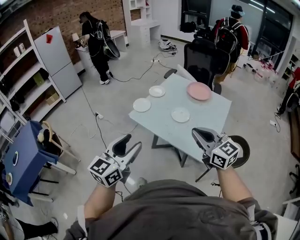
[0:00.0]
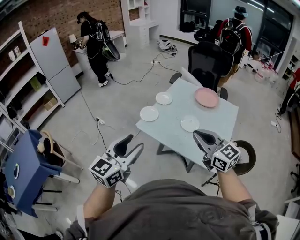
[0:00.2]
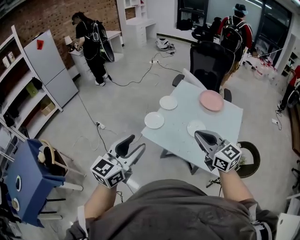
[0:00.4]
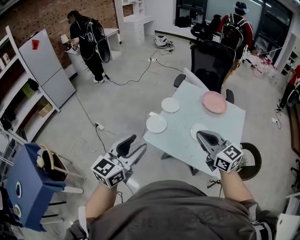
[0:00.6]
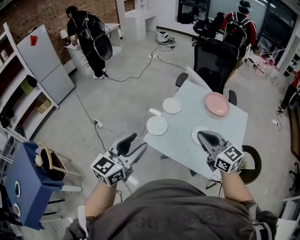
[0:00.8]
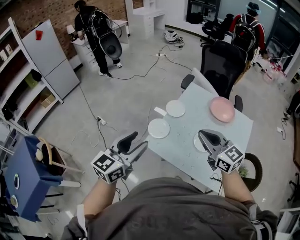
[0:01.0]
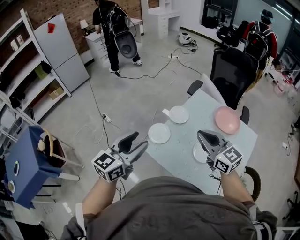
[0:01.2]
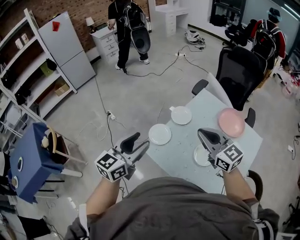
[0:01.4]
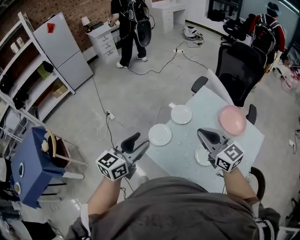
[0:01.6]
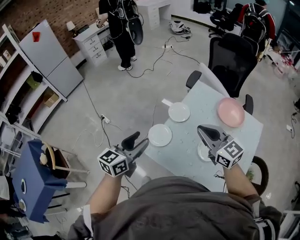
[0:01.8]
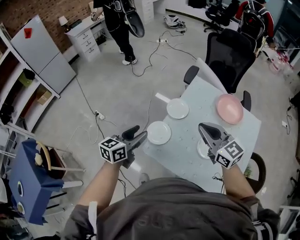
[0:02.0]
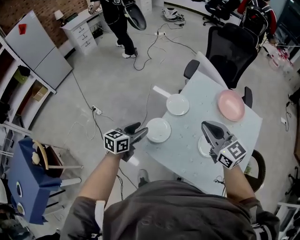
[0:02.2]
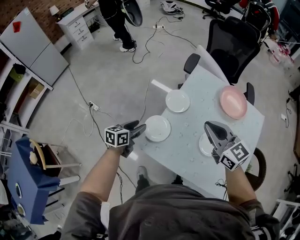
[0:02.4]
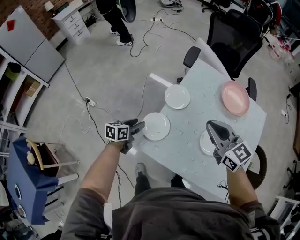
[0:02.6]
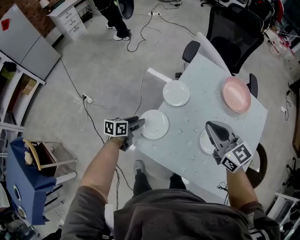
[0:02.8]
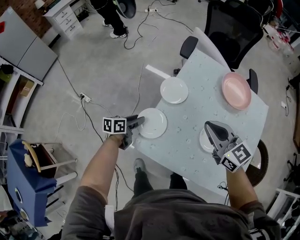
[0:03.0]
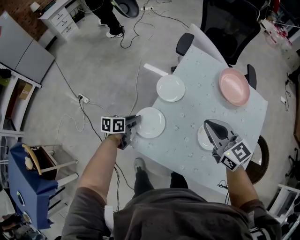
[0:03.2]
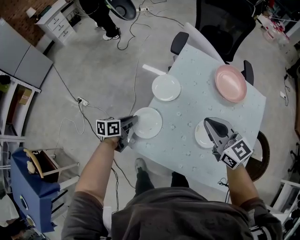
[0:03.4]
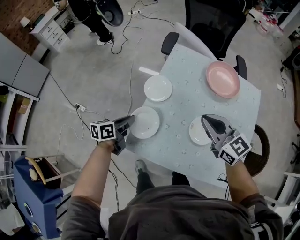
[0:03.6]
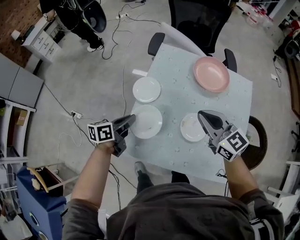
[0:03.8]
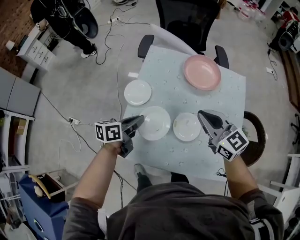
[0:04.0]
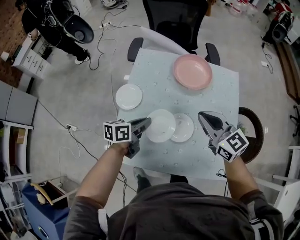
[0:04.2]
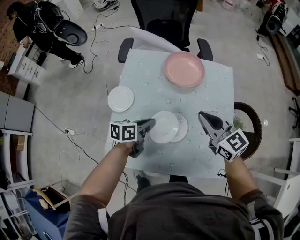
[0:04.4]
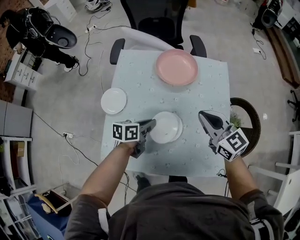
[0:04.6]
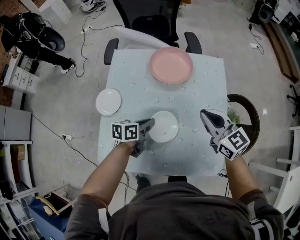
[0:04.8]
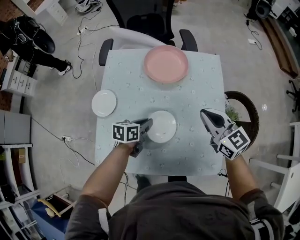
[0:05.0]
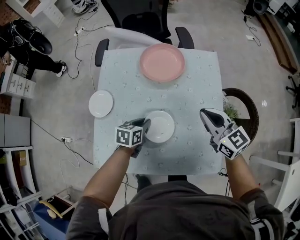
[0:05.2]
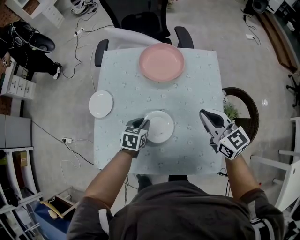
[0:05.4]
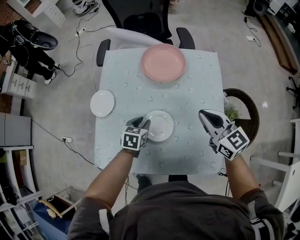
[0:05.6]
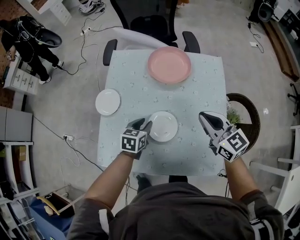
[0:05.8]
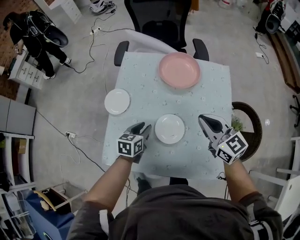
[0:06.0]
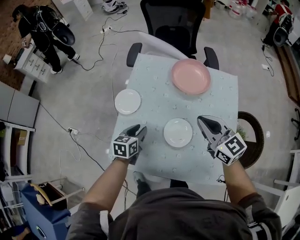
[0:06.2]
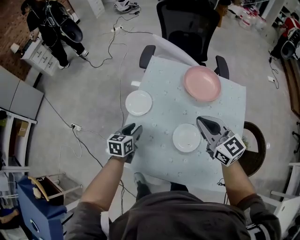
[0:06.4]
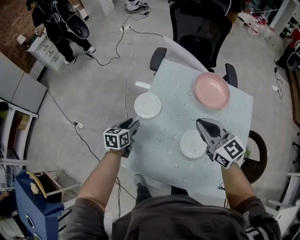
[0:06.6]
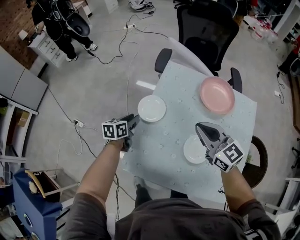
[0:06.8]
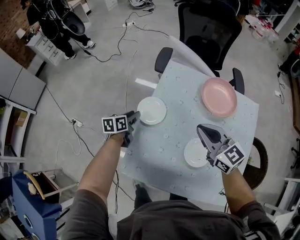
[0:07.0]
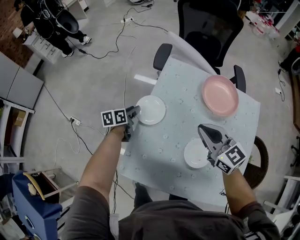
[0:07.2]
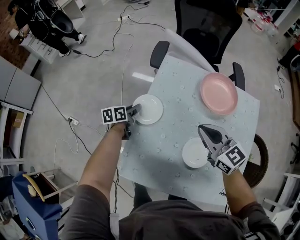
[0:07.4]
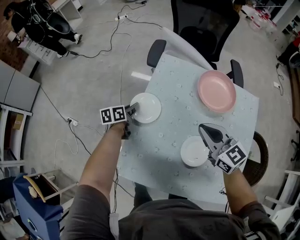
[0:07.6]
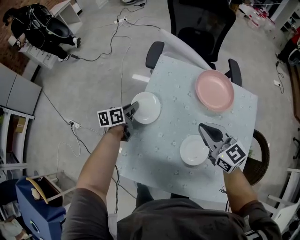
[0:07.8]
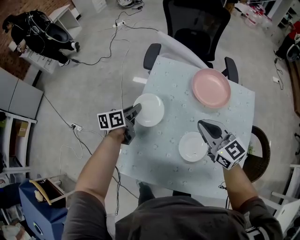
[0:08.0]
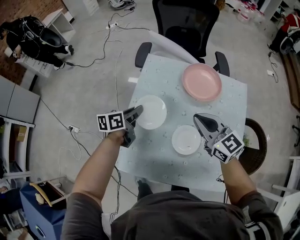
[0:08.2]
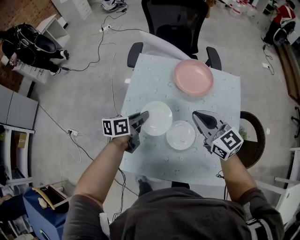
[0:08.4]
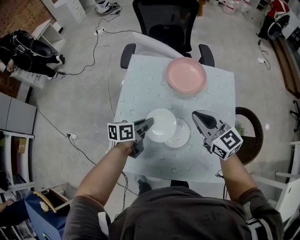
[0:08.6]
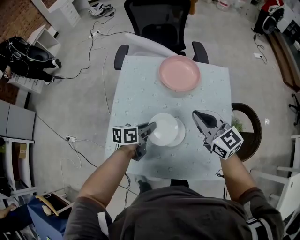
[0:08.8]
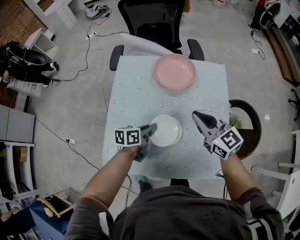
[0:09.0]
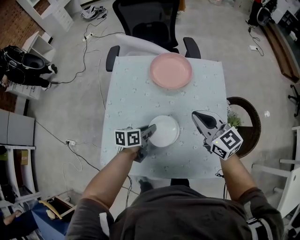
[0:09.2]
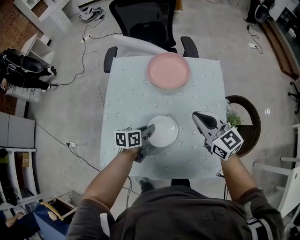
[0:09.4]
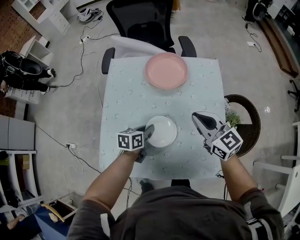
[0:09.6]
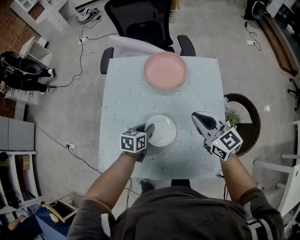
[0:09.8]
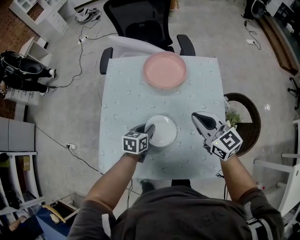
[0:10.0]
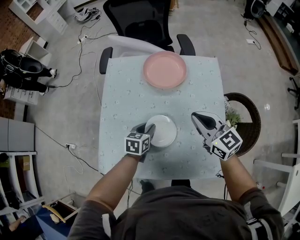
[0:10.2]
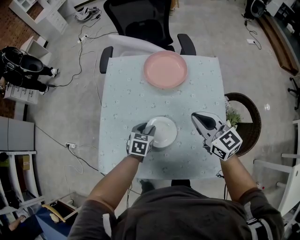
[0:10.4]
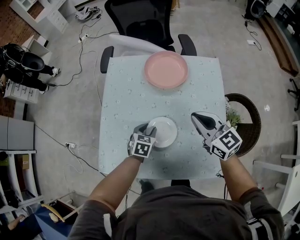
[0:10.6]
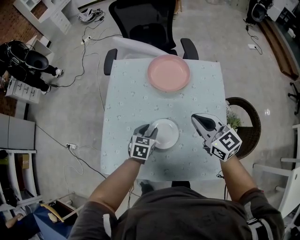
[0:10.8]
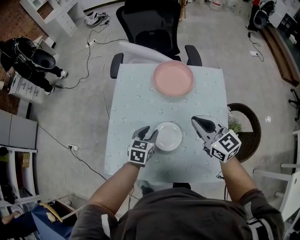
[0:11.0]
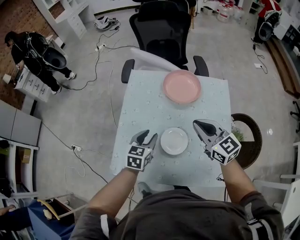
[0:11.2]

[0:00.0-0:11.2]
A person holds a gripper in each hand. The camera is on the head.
0:00.0 to 0:01.6: Both grippers move forward, roughly 40 cm.
0:01.6 to 0:03.2: The right gripper is displaced downward by about 15 cm; the left gripper heads downward and forward, covering roughly 40 cm, changes its angle by roughly 50 degrees, and closes.
0:03.2 to 0:04.8: Both grippers travel together to the right, approximately 30 cm. The right gripper turns by some 20 degrees. The left gripper rotates approximately 30 degrees.
0:04.8 to 0:06.4: The grippers both shift to the left by roughly 20 cm. The left gripper turns by roughly 30 degrees, and opens.
0:06.4 to 0:08.0: The right gripper heads forward, covering some 5 cm, and reaches roughly 10 cm to the left, then returns. Meanwhile the left gripper shifts about 15 cm forward, turns by approximately 20 degrees, and closes its fingers.
0:08.0 to 0:09.6: The two grippers go approximately 20 cm to the right. The left gripper changes its angle by roughly 30 degrees.
0:09.6 to 0:11.2: The right gripper travels to the left by some 5 cm, while the left gripper moves upward and to the left, about 10 cm, swivels some 30 degrees, and opens its fingers.

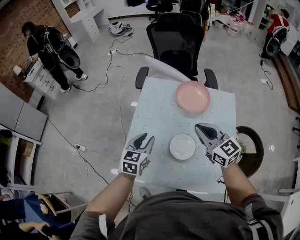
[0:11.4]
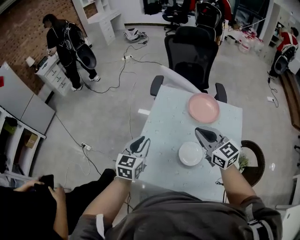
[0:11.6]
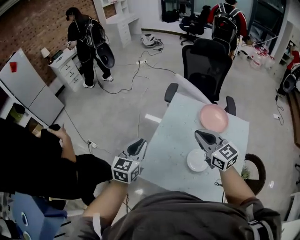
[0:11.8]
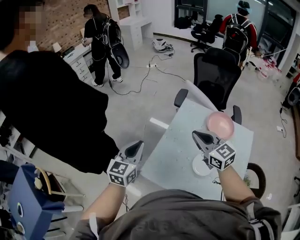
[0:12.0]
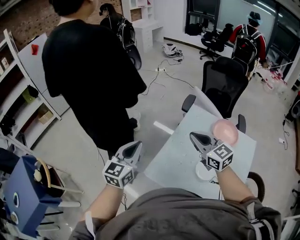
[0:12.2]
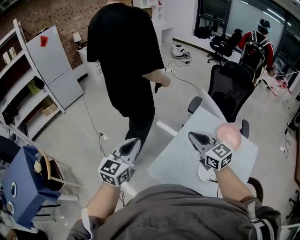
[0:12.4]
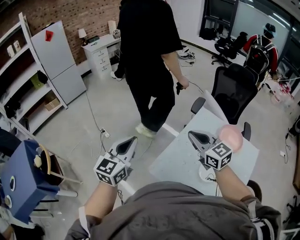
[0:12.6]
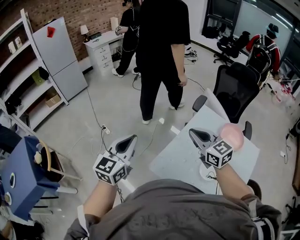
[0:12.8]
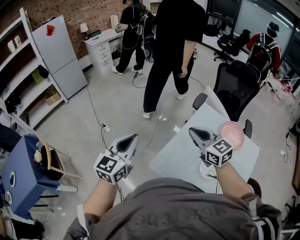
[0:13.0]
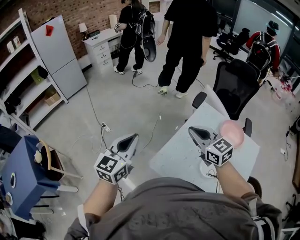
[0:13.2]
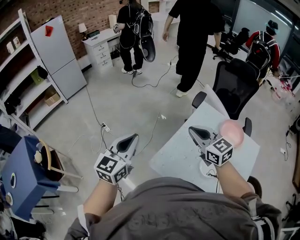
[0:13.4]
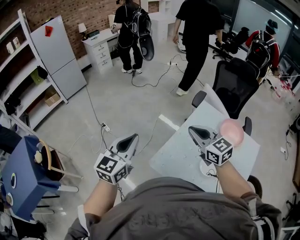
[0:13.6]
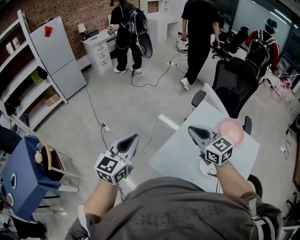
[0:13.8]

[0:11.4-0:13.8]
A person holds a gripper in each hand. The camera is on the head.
0:11.4 to 0:12.6: The right gripper ends up some 30 cm from where it was, and rotates roughly 30 degrees, while the left gripper moves approximately 40 cm, swivels roughly 30 degrees, and closes.
0:12.6 to 0:13.8: The grippers move only a little.

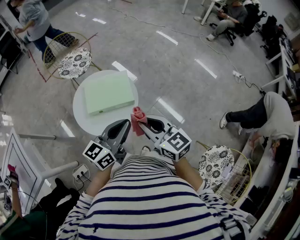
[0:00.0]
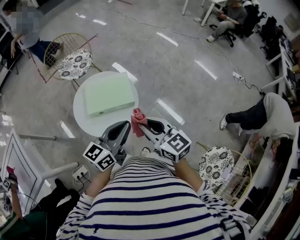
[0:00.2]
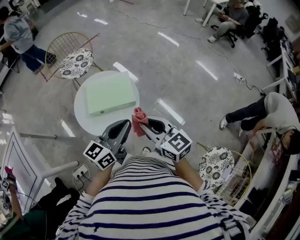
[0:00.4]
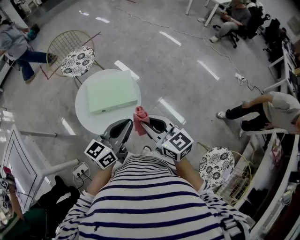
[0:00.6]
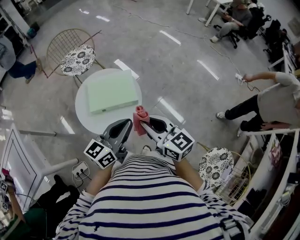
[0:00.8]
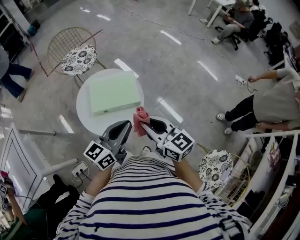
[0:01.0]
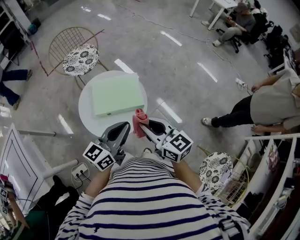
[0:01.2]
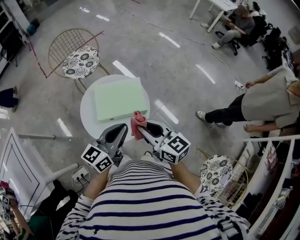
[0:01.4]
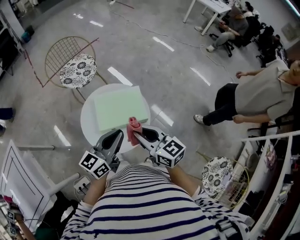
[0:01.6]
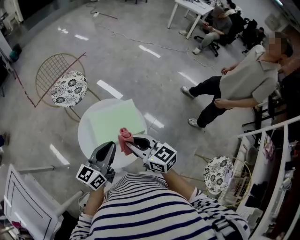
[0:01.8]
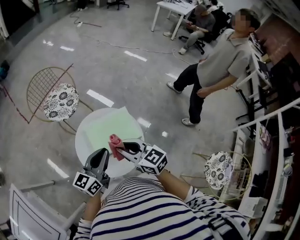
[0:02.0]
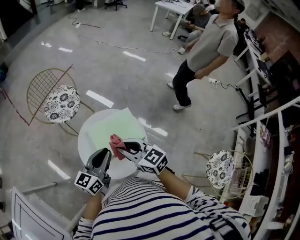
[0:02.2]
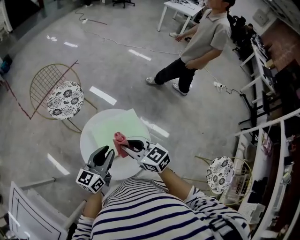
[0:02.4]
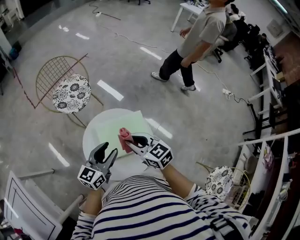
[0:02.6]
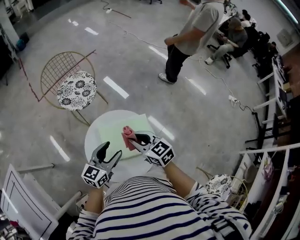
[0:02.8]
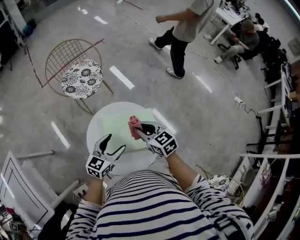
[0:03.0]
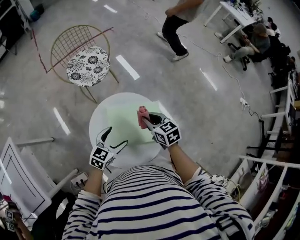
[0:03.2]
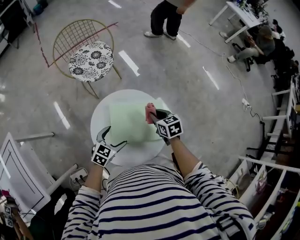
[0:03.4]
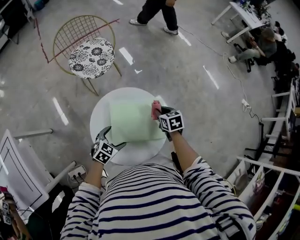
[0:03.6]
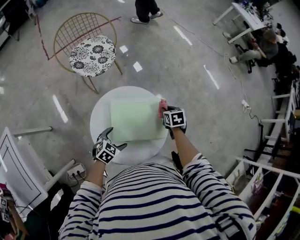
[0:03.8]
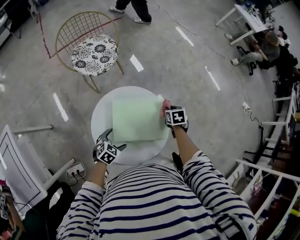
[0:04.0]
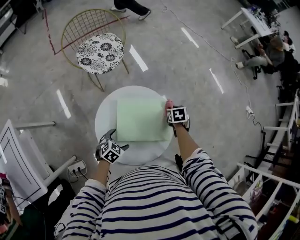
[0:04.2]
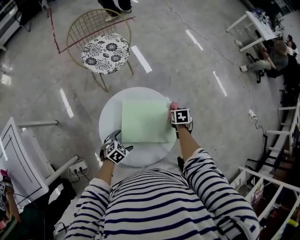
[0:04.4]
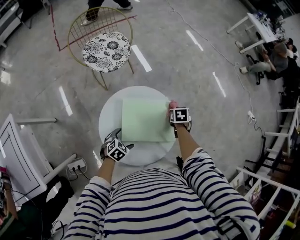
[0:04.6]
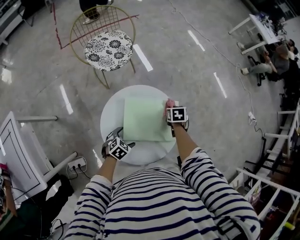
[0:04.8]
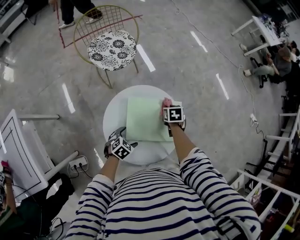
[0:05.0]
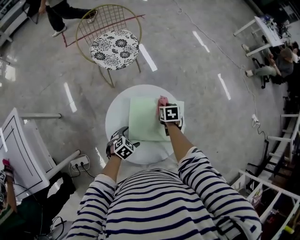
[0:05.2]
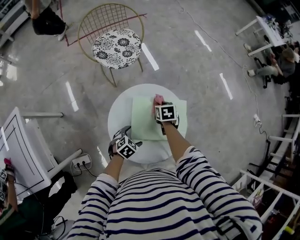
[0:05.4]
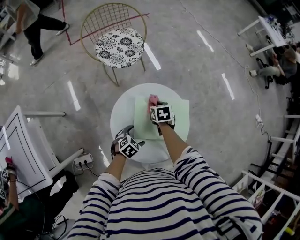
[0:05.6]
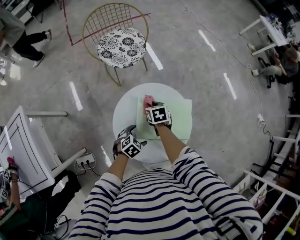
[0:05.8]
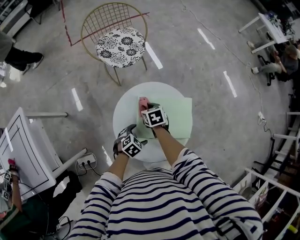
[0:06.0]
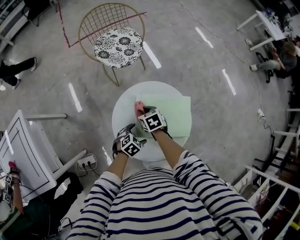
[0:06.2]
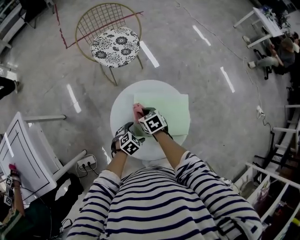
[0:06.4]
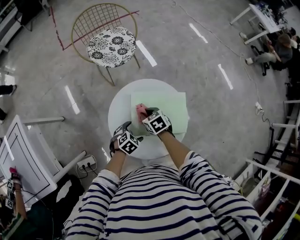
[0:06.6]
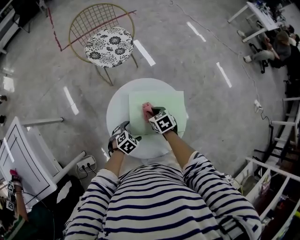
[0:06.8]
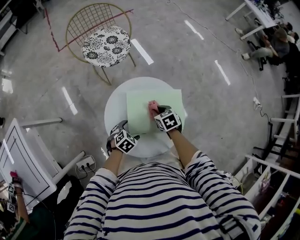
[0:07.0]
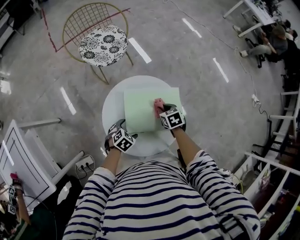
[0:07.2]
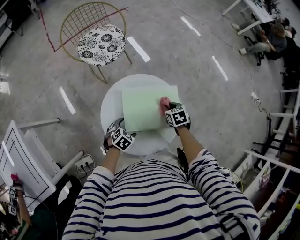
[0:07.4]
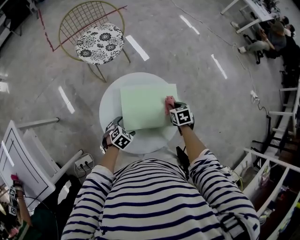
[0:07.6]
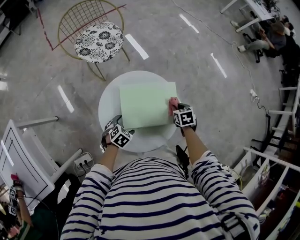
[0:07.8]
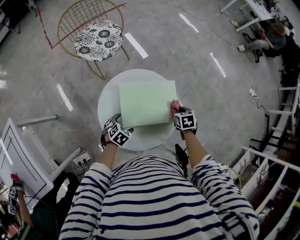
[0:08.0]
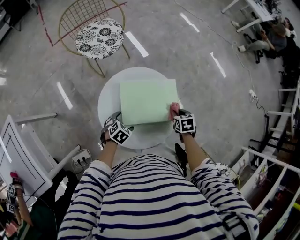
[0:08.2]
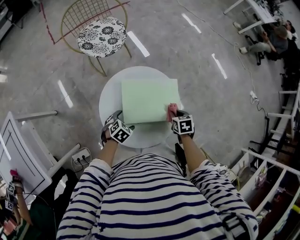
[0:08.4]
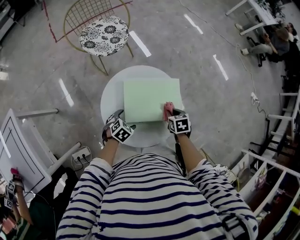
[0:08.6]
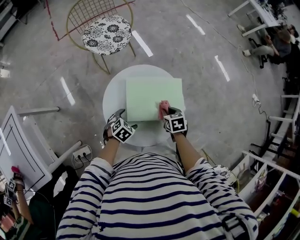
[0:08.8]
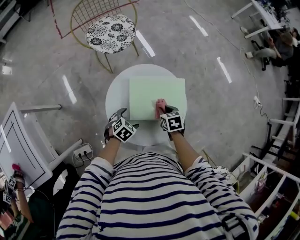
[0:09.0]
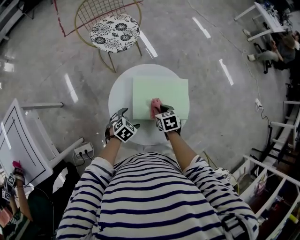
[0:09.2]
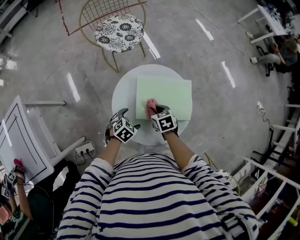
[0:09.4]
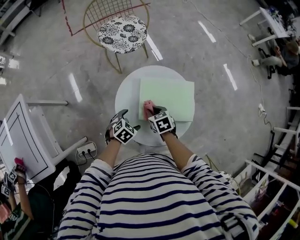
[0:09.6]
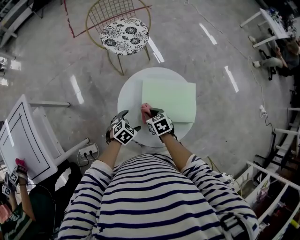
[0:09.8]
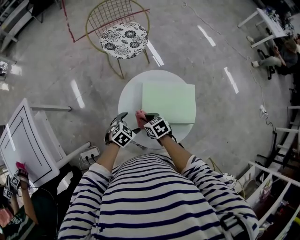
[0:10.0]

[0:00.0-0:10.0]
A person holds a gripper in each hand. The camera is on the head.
0:00.0 to 0:01.4: The grippers both shift to the left and forward by roughly 10 cm.
0:01.4 to 0:02.8: The left gripper goes approximately 20 cm forward, to the left and downward, and opens. Meanwhile the right gripper shifts some 20 cm forward and to the left.
0:02.8 to 0:04.2: The right gripper travels downward, forward and to the right by some 30 cm, and angles its fingers downward, by about 40 degrees, while the left gripper is displaced downward by roughly 25 cm, tips its fingers downward by about 40 degrees, and opens.
0:04.2 to 0:05.8: The right gripper shifts some 25 cm to the left.
0:05.8 to 0:07.2: The right gripper moves to the right, approximately 15 cm.
0:07.2 to 0:08.6: The right gripper heads to the right and backward, covering about 10 cm.
0:08.6 to 0:10.0: The left gripper ends up approximately 10 cm from where it was. Meanwhile the right gripper changes place by approximately 25 cm, and rotates approximately 30 degrees.
